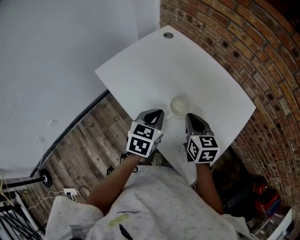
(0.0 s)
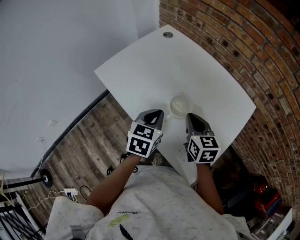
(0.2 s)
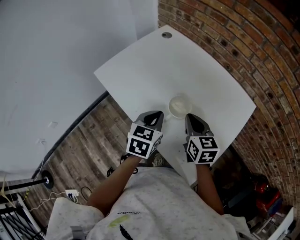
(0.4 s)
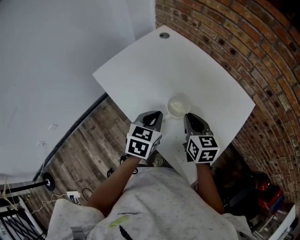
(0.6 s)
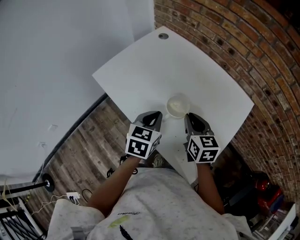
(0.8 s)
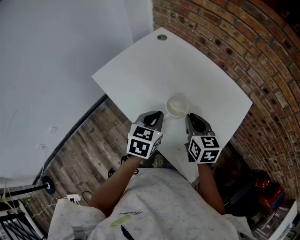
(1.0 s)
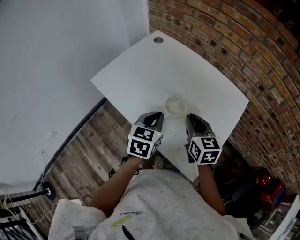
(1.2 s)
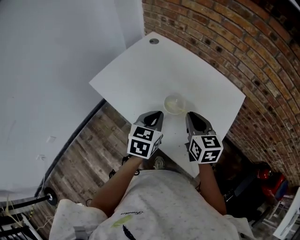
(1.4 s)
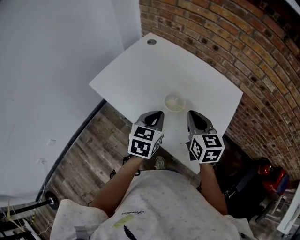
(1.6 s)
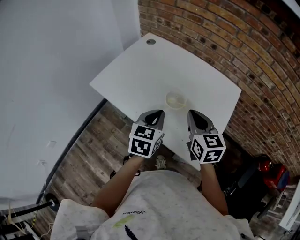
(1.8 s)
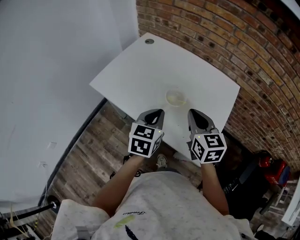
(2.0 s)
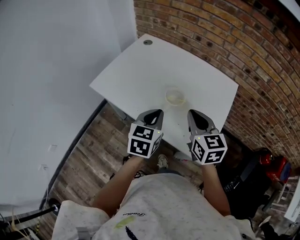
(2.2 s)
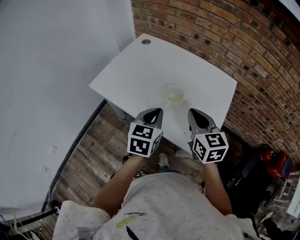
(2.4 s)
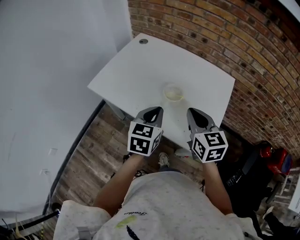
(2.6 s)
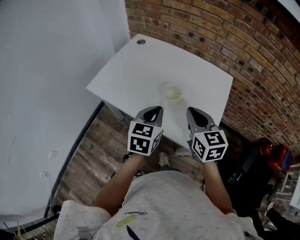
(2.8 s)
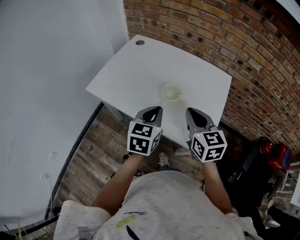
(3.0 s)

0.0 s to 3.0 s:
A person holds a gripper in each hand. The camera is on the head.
0.0 to 1.6 s: The right gripper travels upward by about 5 cm.
1.6 to 3.0 s: The left gripper changes place by roughly 5 cm. Meanwhile the right gripper moves backward, roughly 5 cm.

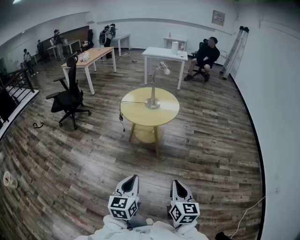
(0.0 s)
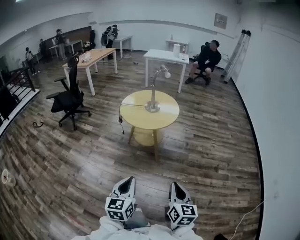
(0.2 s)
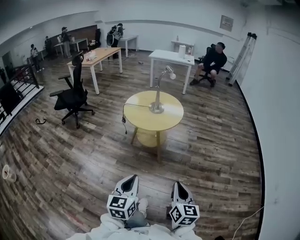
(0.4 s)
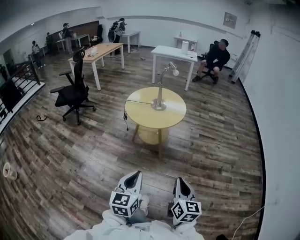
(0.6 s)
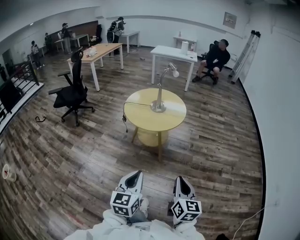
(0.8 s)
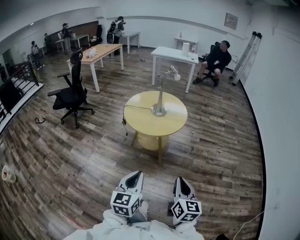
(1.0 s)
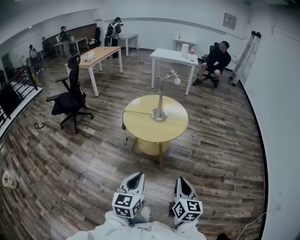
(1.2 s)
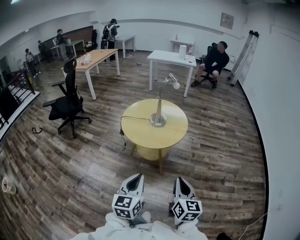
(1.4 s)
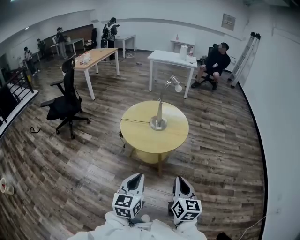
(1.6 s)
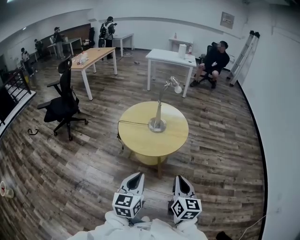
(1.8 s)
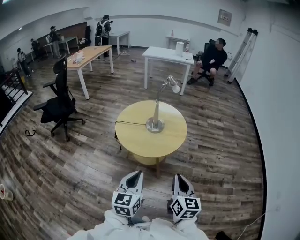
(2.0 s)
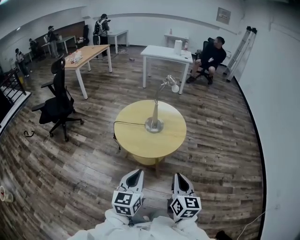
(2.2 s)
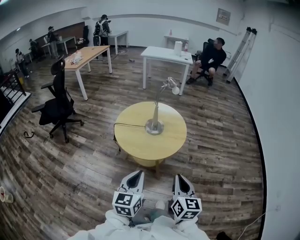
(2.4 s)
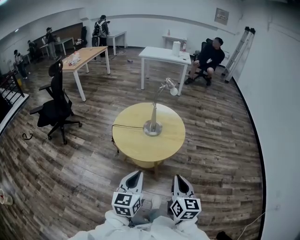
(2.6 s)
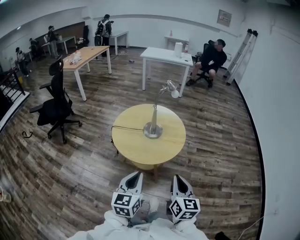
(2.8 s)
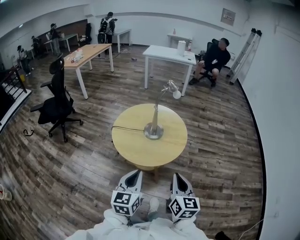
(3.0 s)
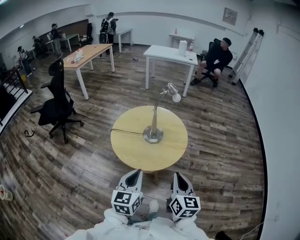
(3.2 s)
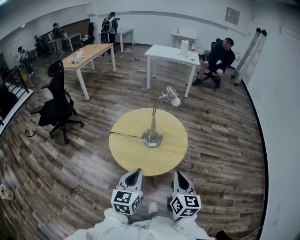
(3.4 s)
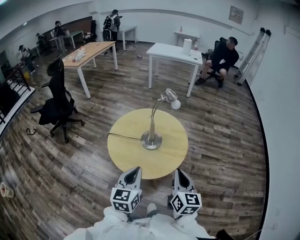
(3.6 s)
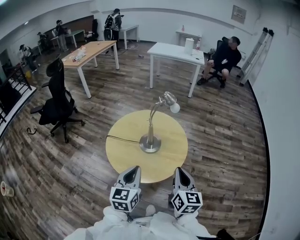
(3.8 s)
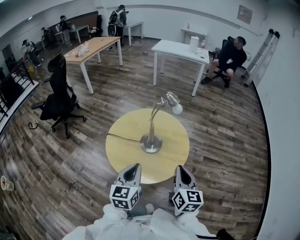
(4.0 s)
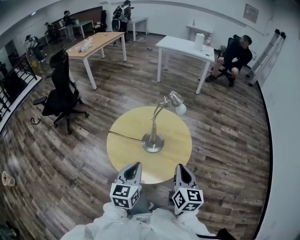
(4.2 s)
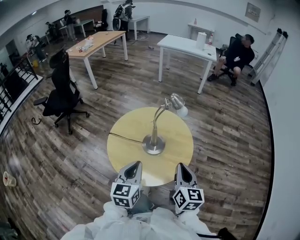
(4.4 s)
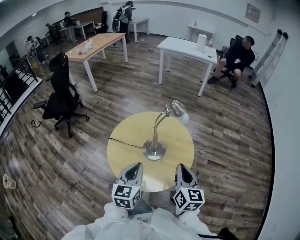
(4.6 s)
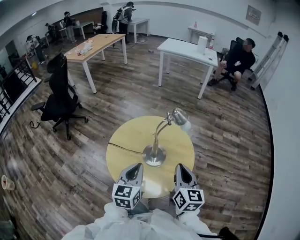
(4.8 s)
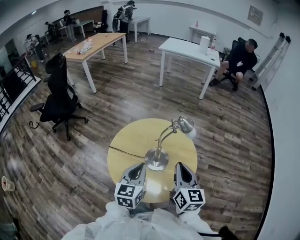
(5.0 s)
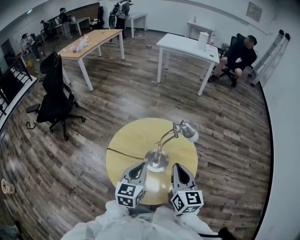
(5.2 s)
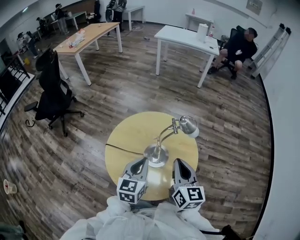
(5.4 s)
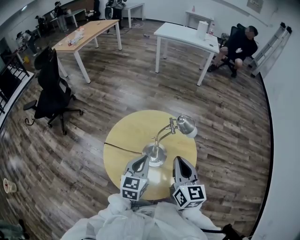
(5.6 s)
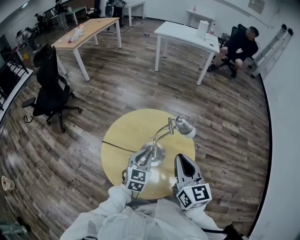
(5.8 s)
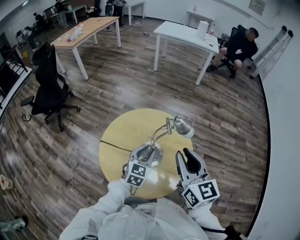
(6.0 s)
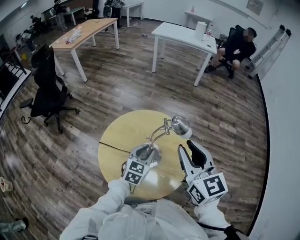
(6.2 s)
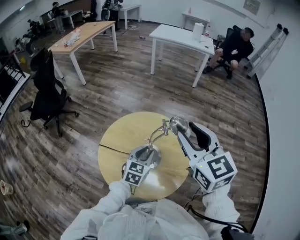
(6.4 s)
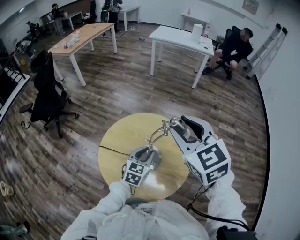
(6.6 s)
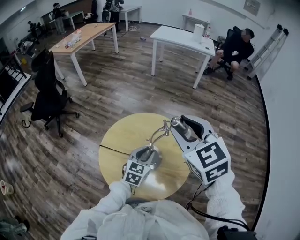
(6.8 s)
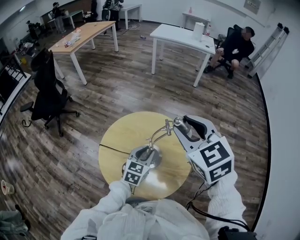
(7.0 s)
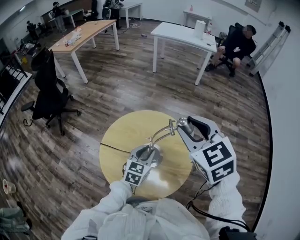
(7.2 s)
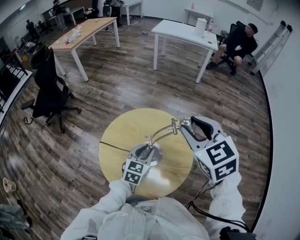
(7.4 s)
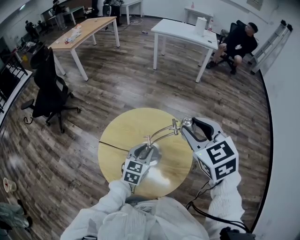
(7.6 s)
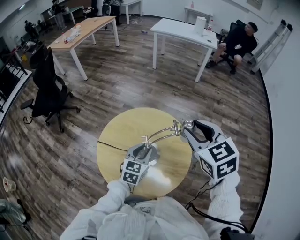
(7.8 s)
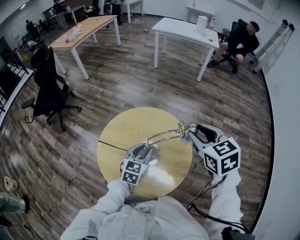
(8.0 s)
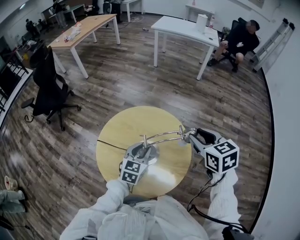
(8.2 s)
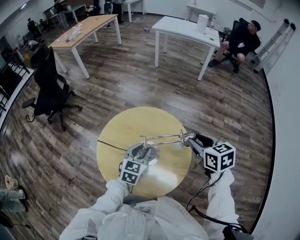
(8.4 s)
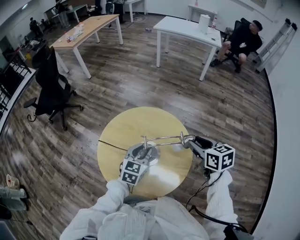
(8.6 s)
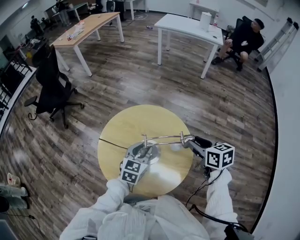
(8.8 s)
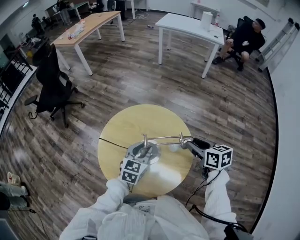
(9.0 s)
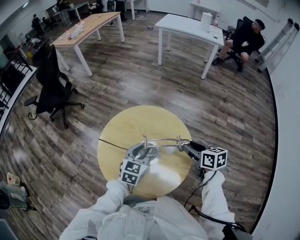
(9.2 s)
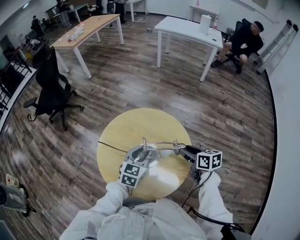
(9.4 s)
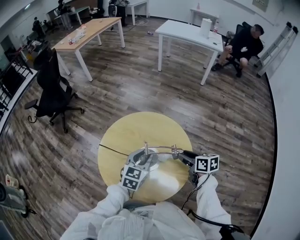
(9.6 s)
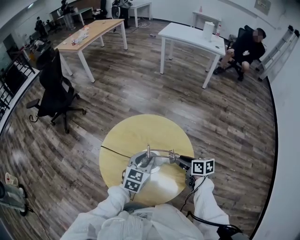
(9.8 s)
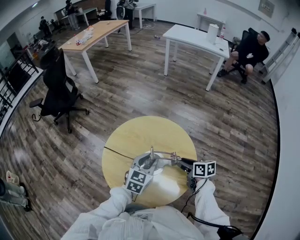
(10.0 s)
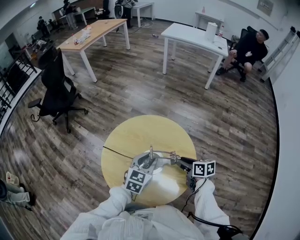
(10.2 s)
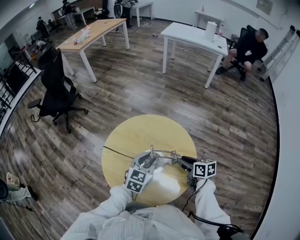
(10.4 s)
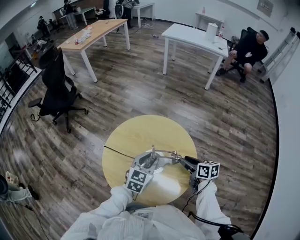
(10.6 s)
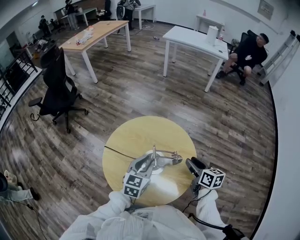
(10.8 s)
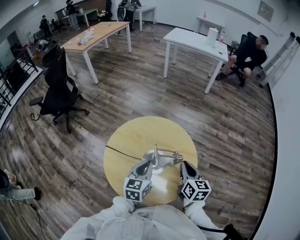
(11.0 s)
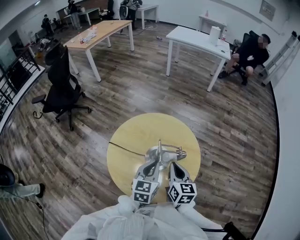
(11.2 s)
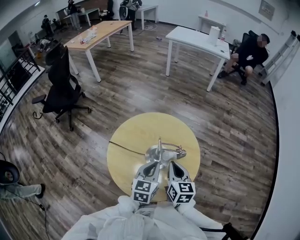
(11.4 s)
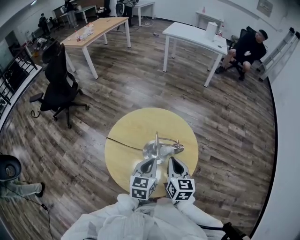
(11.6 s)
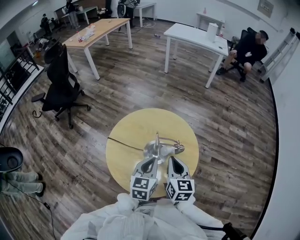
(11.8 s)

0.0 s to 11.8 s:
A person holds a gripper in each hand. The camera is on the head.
0.0 to 1.4 s: The two grippers go roughly 25 cm forward.
1.4 to 3.0 s: Both grippers move forward, approximately 20 cm.
3.0 to 4.4 s: The grippers both shift forward by about 25 cm.
4.4 to 6.0 s: The right gripper is displaced forward and upward by some 20 cm. Meanwhile the left gripper shifts some 25 cm forward and downward, changes its angle by about 20 degrees, and opens.
6.0 to 7.4 s: The right gripper heads forward and upward, covering roughly 10 cm, changes its angle by some 30 degrees, and opens up.
7.4 to 8.8 s: The right gripper goes roughly 20 cm downward and to the right, and swivels approximately 40 degrees.
8.8 to 10.4 s: The right gripper shifts approximately 15 cm downward and to the left.
10.4 to 11.8 s: The left gripper is displaced backward by about 10 cm, and closes up. Meanwhile the right gripper heads upward, backward and to the left, covering approximately 15 cm, rotates some 40 degrees, and closes.

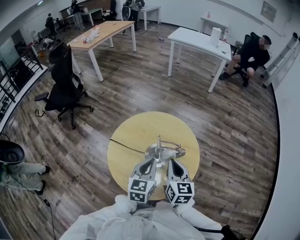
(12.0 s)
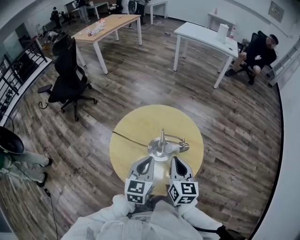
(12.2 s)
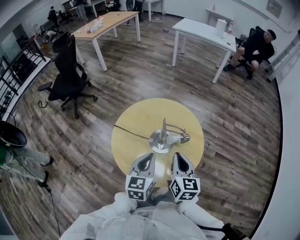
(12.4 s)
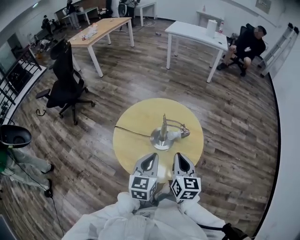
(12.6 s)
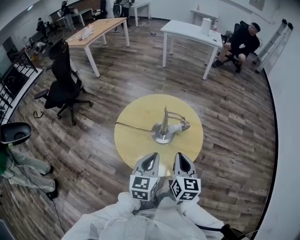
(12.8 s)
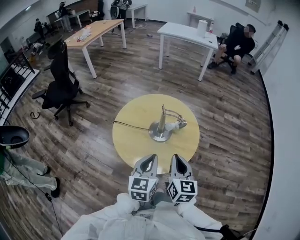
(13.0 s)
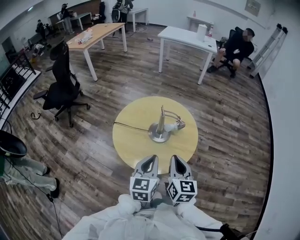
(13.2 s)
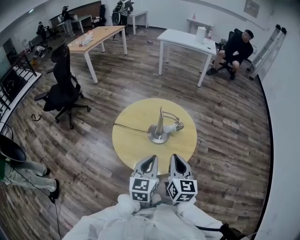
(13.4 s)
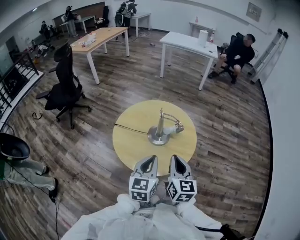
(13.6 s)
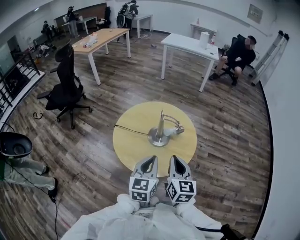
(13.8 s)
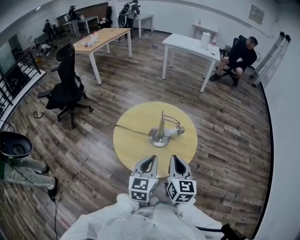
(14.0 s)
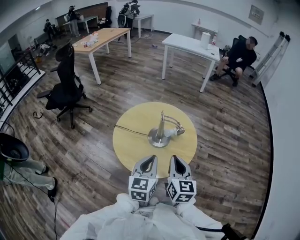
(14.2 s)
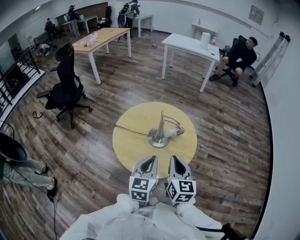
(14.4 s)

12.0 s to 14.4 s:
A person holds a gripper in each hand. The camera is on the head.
12.0 to 13.2 s: The grippers both shift backward by some 15 cm.
13.2 to 14.4 s: There are only small adjustments of the grippers.

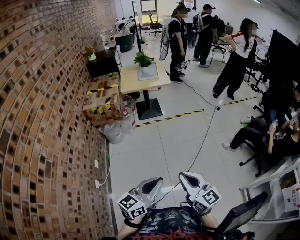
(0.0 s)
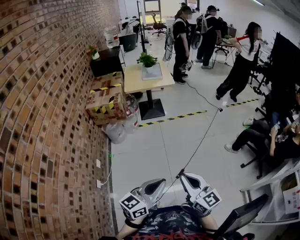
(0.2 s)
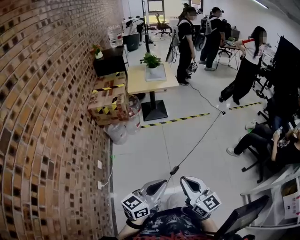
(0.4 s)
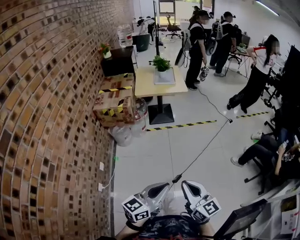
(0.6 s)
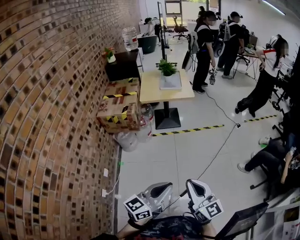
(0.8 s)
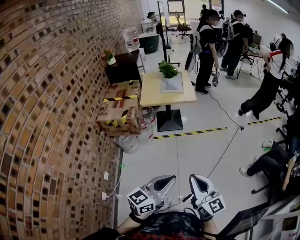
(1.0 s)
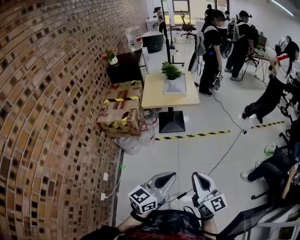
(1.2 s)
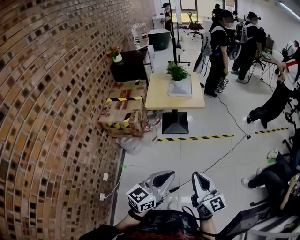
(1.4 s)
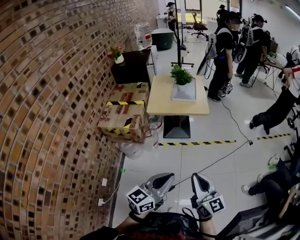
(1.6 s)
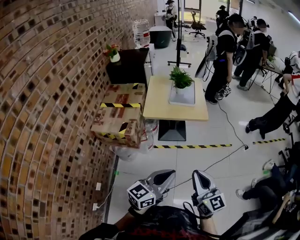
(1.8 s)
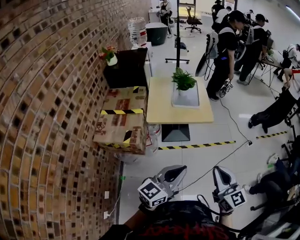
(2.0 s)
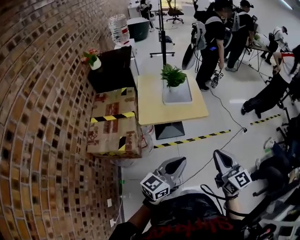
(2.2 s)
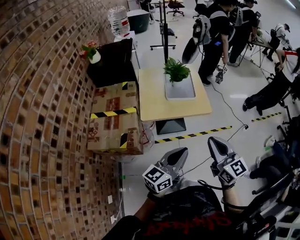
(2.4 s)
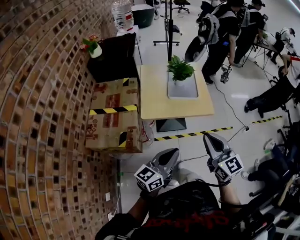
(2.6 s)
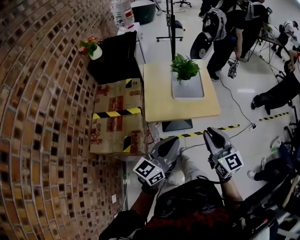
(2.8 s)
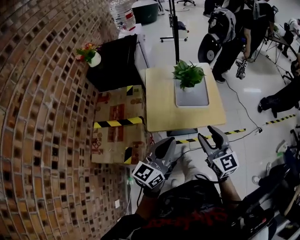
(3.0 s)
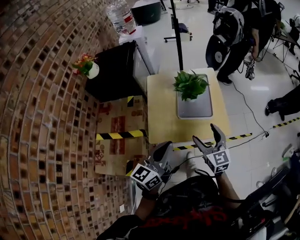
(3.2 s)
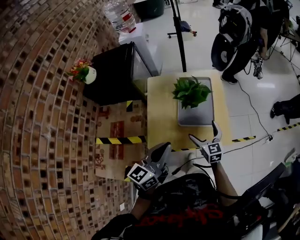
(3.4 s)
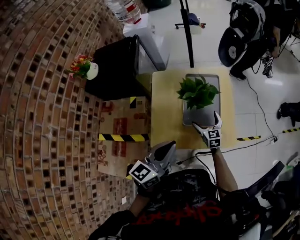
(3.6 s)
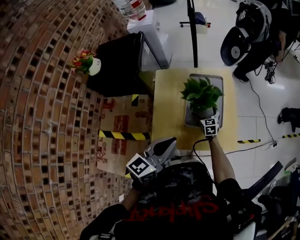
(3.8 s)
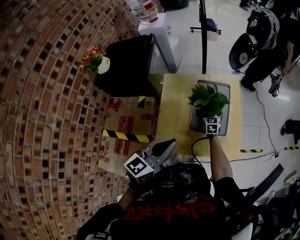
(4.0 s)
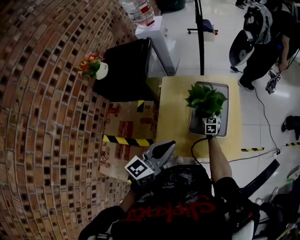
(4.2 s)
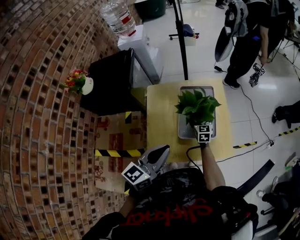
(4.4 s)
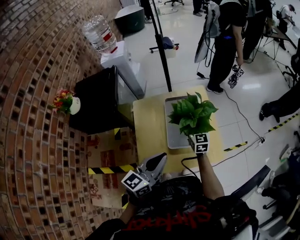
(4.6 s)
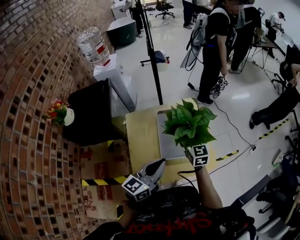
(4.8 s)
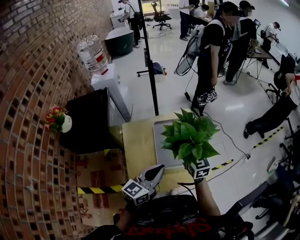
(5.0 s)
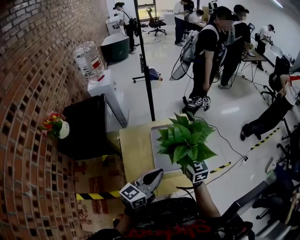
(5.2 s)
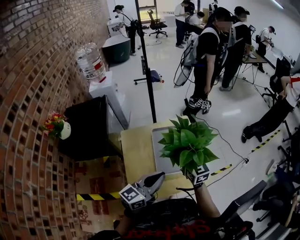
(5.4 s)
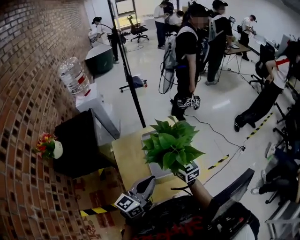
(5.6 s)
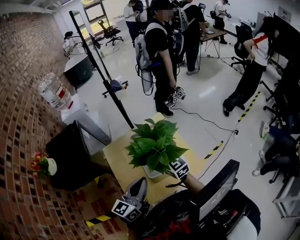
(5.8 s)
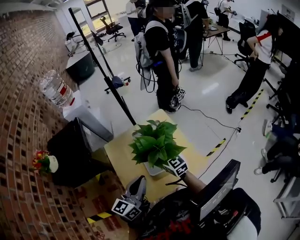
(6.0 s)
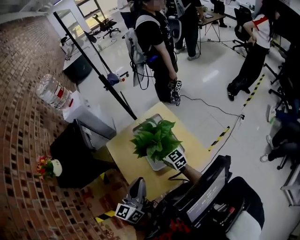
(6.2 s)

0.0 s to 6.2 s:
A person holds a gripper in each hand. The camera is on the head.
0.0 to 1.6 s: Both grippers are carried forward, some 40 cm.
1.6 to 3.2 s: The two grippers travel together, forward, approximately 60 cm. The right gripper changes its angle by about 20 degrees, and opens up.
3.2 to 4.6 s: The right gripper shifts roughly 30 cm forward. The left gripper heads forward, covering approximately 15 cm.
4.6 to 6.2 s: The right gripper goes upward and returns, roughly 15 cm each way.
